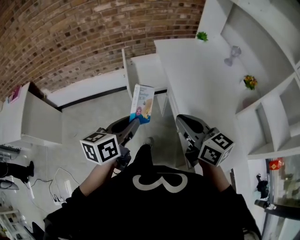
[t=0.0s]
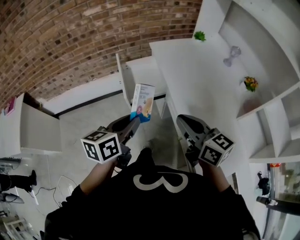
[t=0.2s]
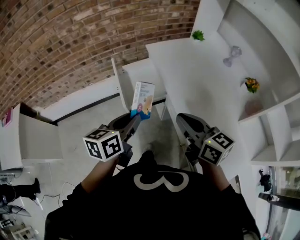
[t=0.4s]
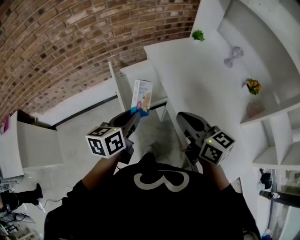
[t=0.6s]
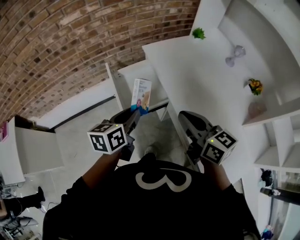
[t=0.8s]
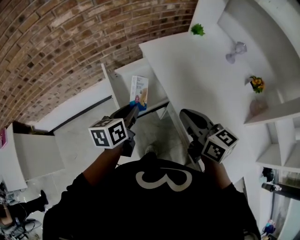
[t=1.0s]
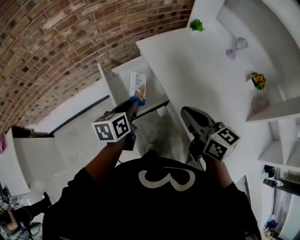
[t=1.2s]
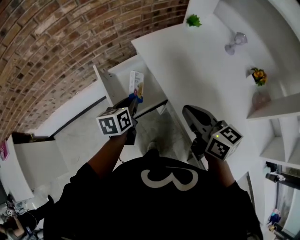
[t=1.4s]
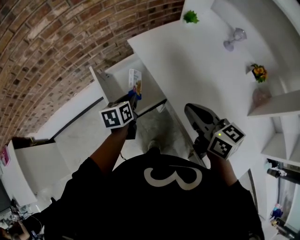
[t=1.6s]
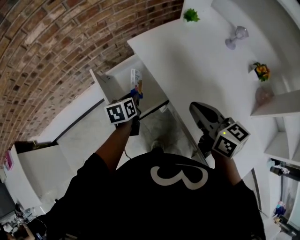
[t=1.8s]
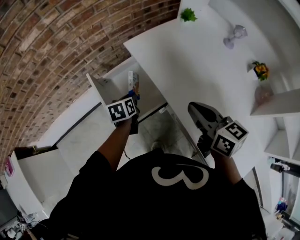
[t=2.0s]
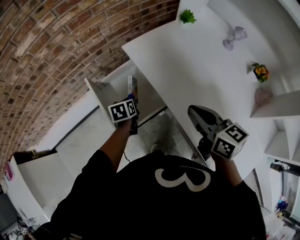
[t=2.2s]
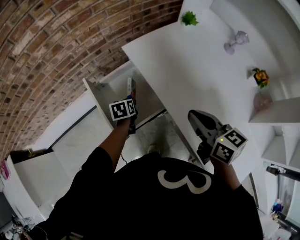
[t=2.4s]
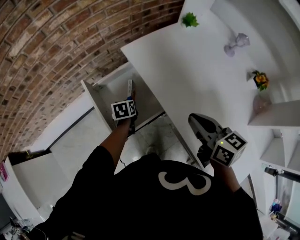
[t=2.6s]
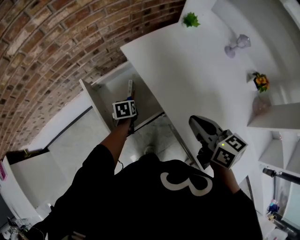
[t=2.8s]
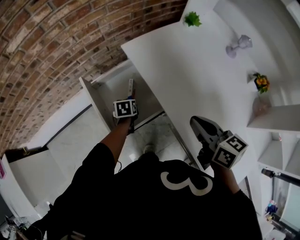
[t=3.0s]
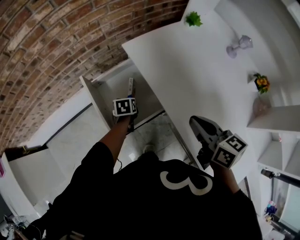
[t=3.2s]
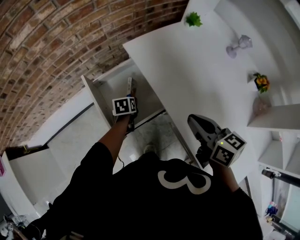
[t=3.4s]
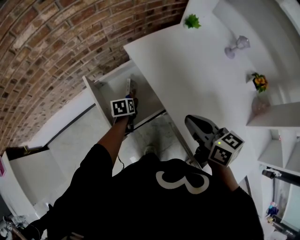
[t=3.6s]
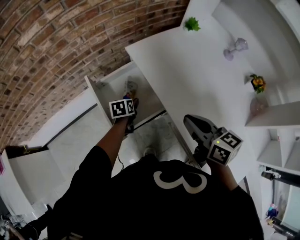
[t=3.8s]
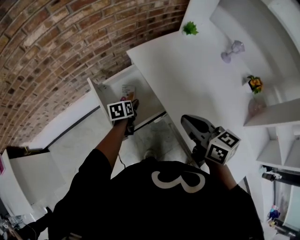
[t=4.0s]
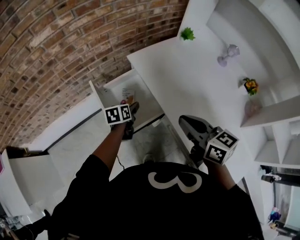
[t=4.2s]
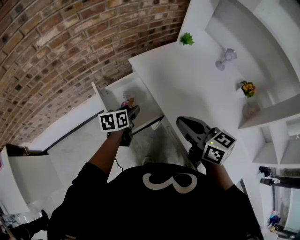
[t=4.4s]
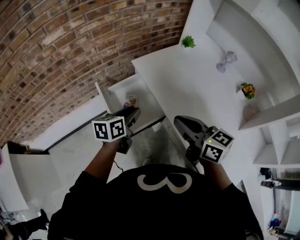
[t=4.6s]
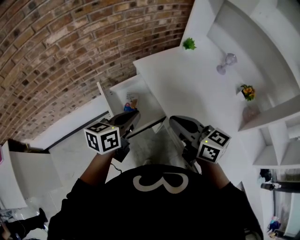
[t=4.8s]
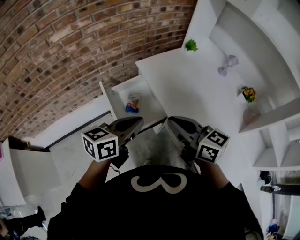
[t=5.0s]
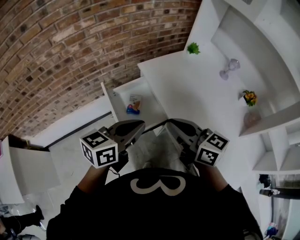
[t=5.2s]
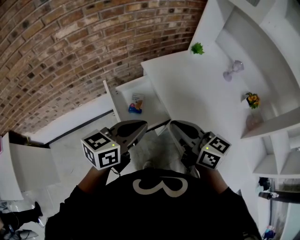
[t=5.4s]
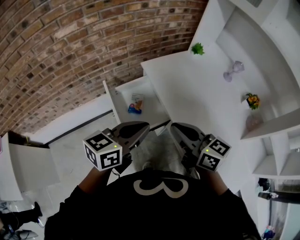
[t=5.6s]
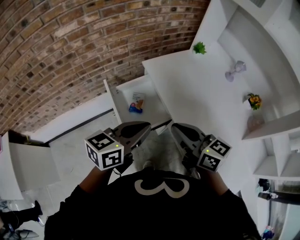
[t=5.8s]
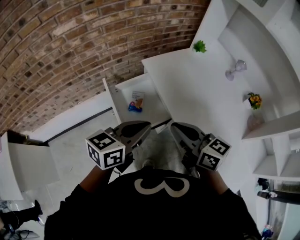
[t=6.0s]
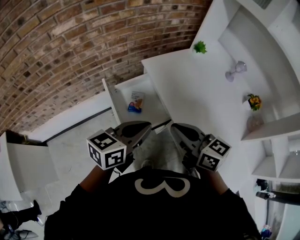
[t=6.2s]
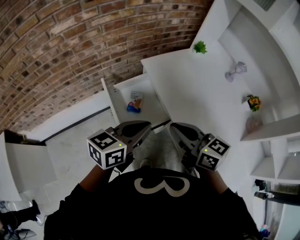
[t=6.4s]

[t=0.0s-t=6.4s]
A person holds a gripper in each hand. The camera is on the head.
t=0.0s to t=1.6s: The left gripper heads forward and downward, covering some 40 cm, and changes its angle by approximately 20 degrees. Meanwhile the right gripper goes some 25 cm forward, and turns by roughly 20 degrees.
t=1.6s to t=3.2s: The left gripper moves downward and forward, some 20 cm, and turns by roughly 20 degrees, while the right gripper shifts by about 5 cm.
t=3.2s to t=4.8s: The right gripper heads upward and to the left, covering some 15 cm, and swivels roughly 20 degrees; the left gripper moves upward and backward, approximately 35 cm, points its fingers some 40 degrees further upward, and opens, then closes again.

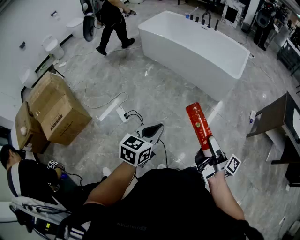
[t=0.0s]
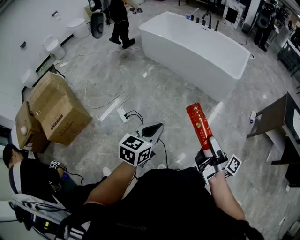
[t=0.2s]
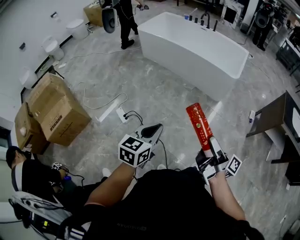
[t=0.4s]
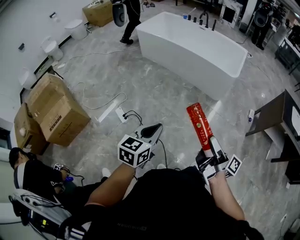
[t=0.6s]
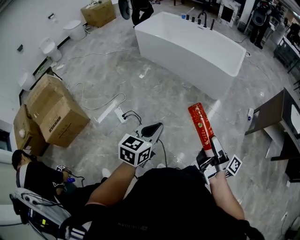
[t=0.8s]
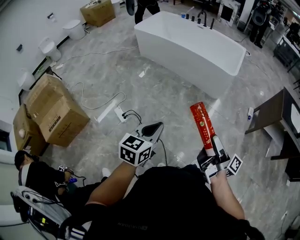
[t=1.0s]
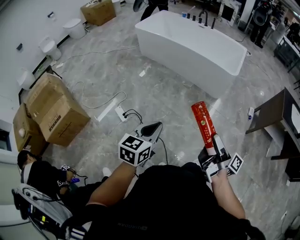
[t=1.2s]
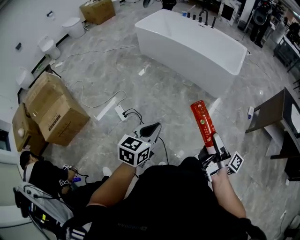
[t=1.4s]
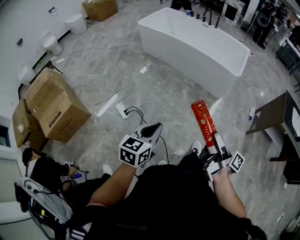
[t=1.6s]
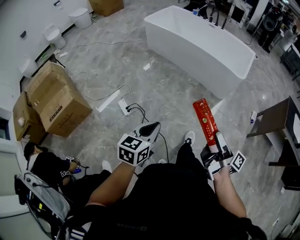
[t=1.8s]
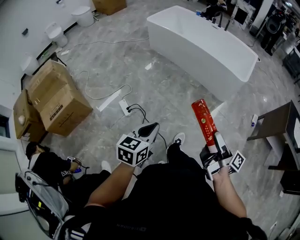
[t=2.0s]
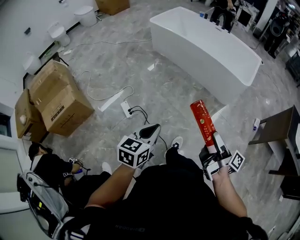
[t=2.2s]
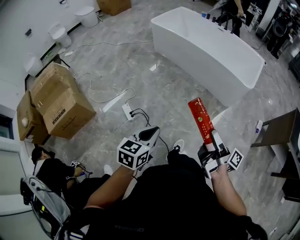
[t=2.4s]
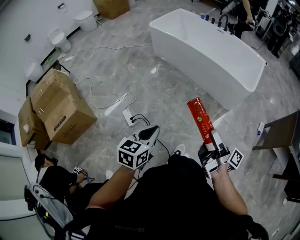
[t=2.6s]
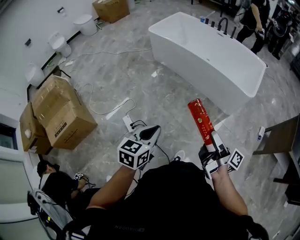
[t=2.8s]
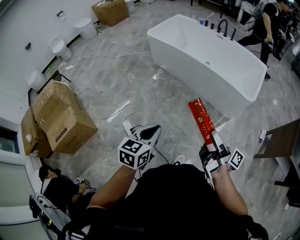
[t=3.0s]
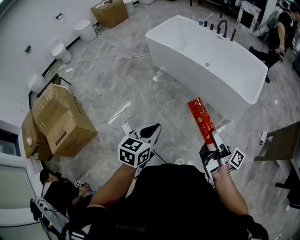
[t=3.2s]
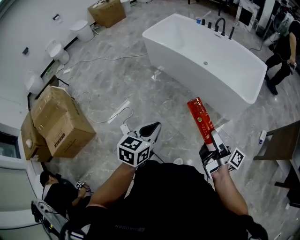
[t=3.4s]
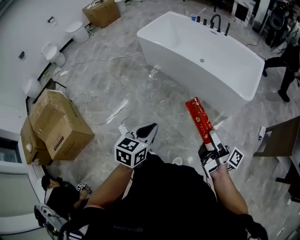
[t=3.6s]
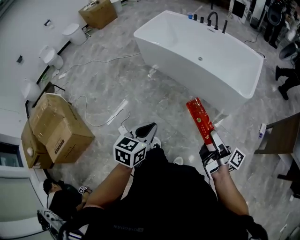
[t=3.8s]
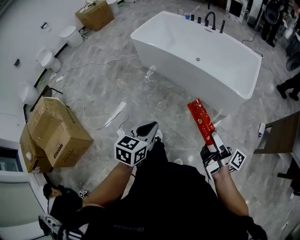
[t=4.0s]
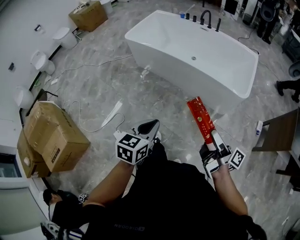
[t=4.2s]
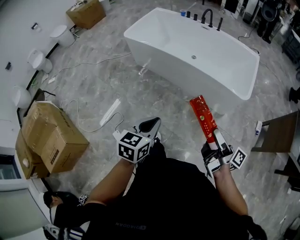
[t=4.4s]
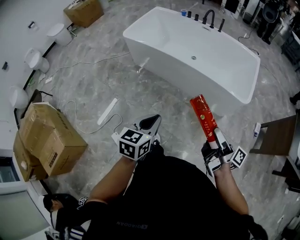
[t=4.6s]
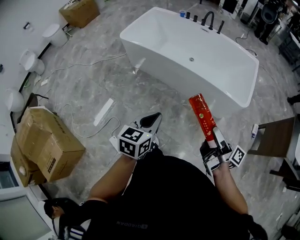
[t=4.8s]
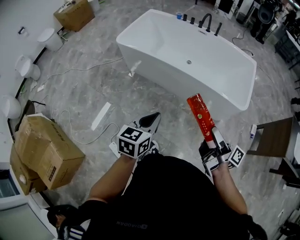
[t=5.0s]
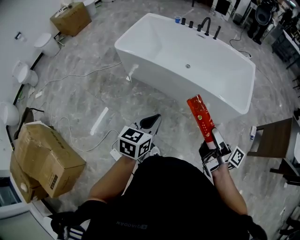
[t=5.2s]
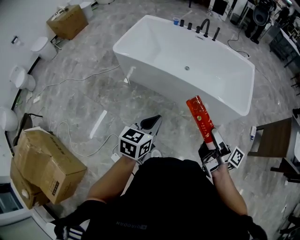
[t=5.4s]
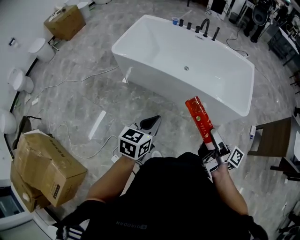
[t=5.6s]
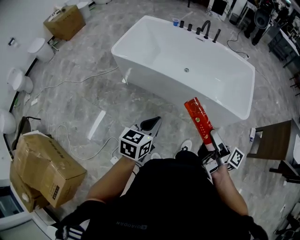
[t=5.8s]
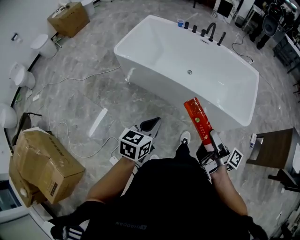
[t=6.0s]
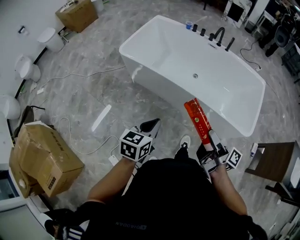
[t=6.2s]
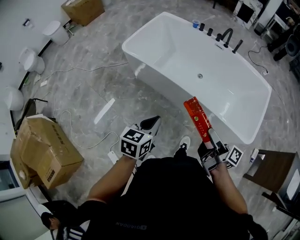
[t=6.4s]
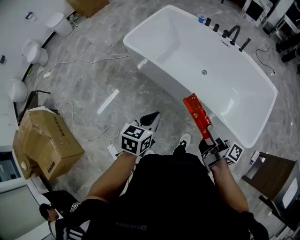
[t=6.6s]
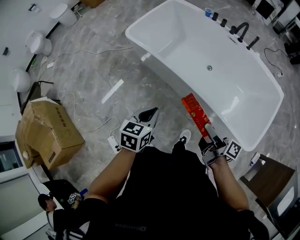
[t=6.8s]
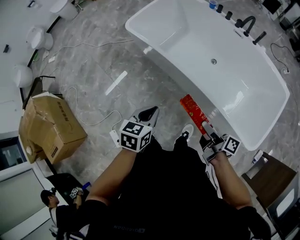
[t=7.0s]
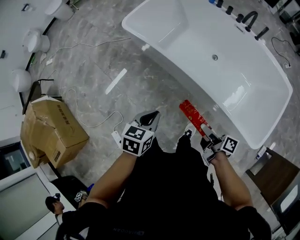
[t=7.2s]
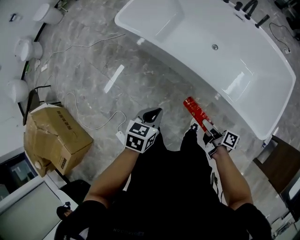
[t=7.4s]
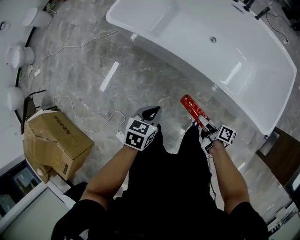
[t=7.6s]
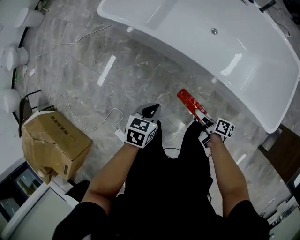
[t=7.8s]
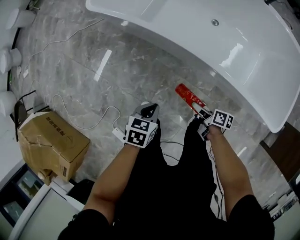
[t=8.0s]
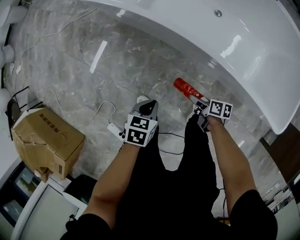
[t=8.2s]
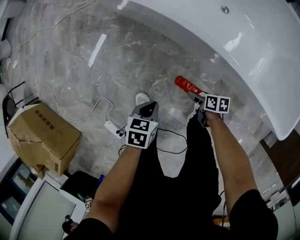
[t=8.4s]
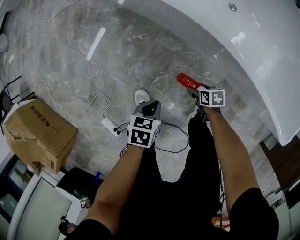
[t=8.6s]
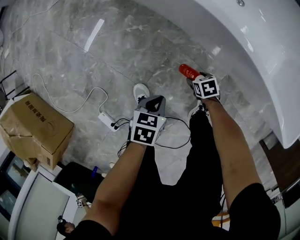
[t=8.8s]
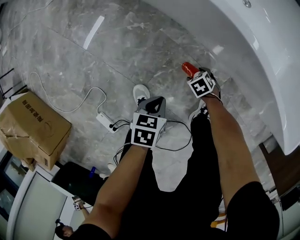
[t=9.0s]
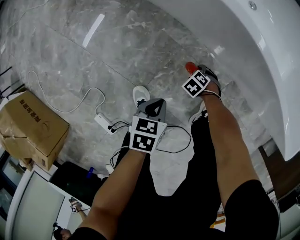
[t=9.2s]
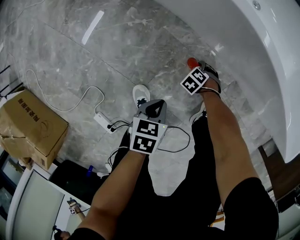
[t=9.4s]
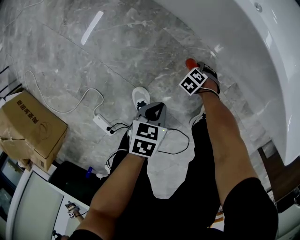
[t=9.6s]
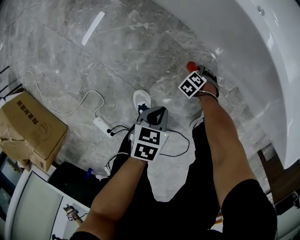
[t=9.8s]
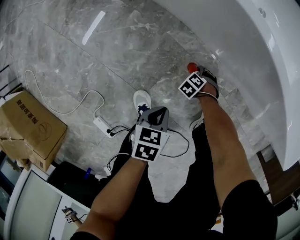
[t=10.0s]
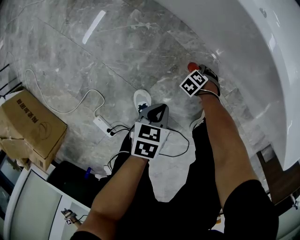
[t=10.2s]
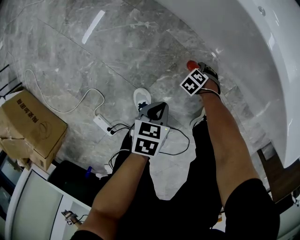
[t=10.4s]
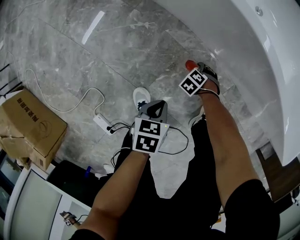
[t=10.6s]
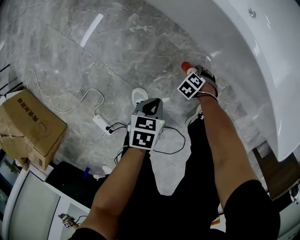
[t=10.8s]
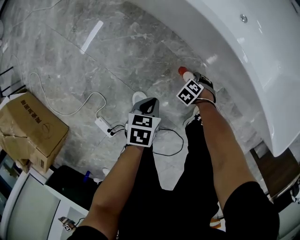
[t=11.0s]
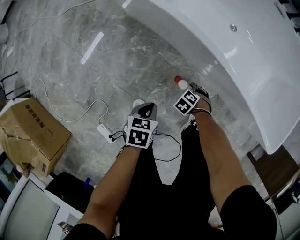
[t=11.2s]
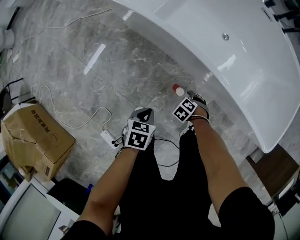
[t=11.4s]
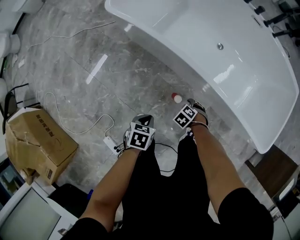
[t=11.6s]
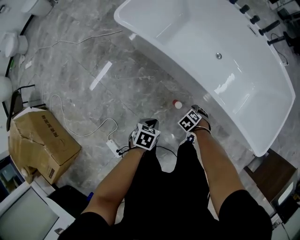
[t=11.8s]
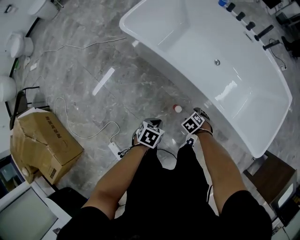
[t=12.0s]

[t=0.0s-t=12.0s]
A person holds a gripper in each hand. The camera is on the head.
t=1.6s to t=3.0s: The left gripper ends up some 25 cm from where it was.
t=3.0s to t=4.4s: The left gripper shifts by approximately 20 cm.
t=4.4s to t=6.0s: The left gripper ends up some 30 cm from where it was.
t=6.0s to t=7.6s: The left gripper heads downward, covering approximately 20 cm, and changes its angle by approximately 20 degrees.
t=7.6s to t=9.0s: The left gripper is displaced downward by about 35 cm, and turns by some 20 degrees.
t=10.4s to t=12.0s: The left gripper moves upward, some 25 cm.

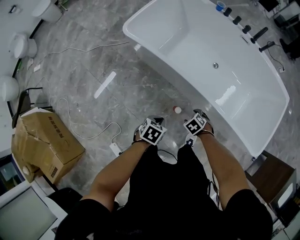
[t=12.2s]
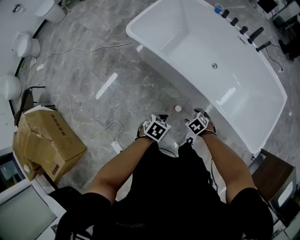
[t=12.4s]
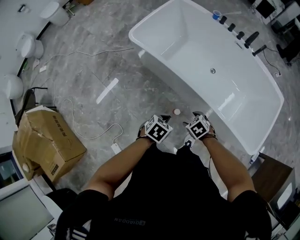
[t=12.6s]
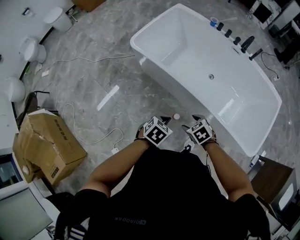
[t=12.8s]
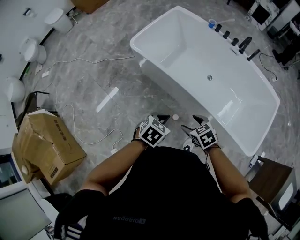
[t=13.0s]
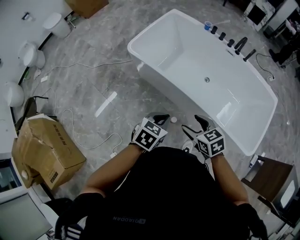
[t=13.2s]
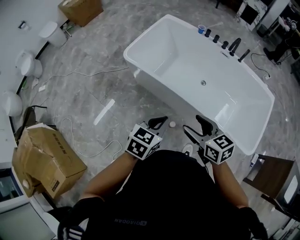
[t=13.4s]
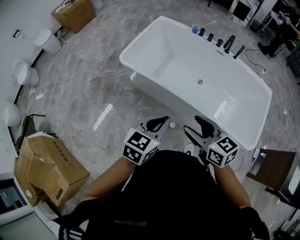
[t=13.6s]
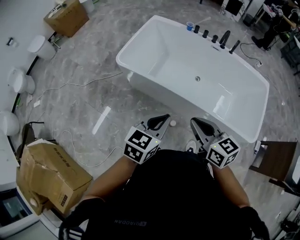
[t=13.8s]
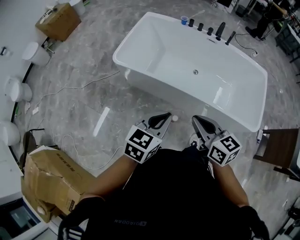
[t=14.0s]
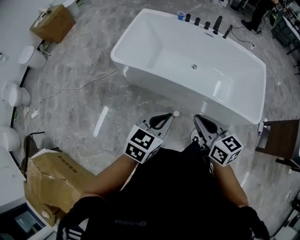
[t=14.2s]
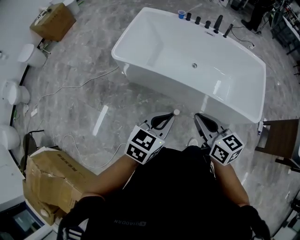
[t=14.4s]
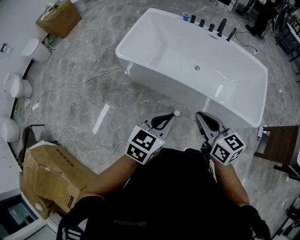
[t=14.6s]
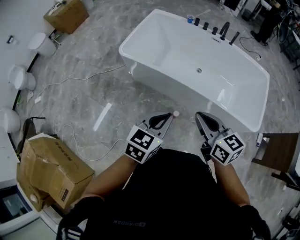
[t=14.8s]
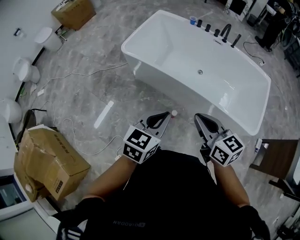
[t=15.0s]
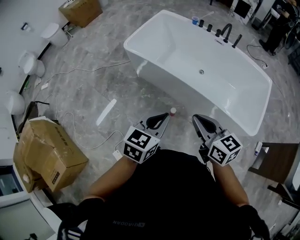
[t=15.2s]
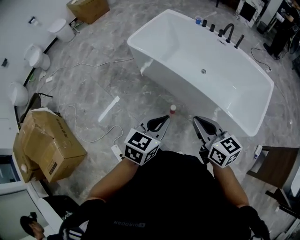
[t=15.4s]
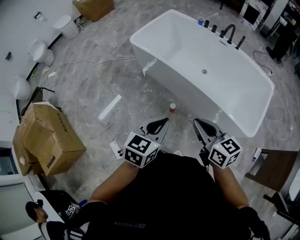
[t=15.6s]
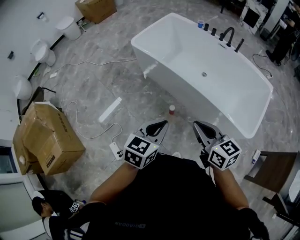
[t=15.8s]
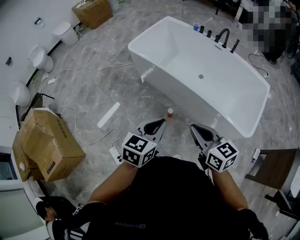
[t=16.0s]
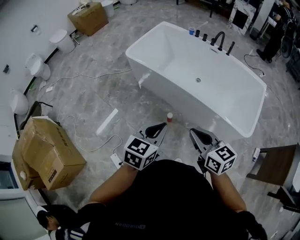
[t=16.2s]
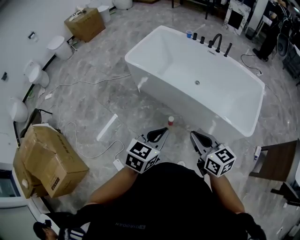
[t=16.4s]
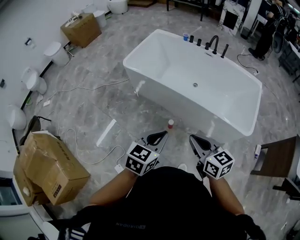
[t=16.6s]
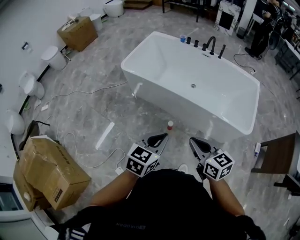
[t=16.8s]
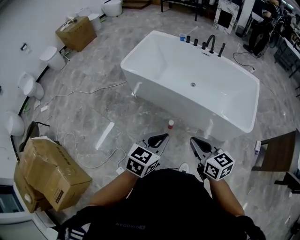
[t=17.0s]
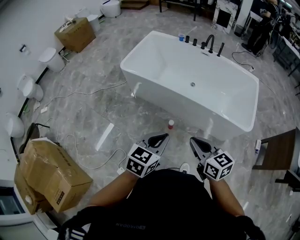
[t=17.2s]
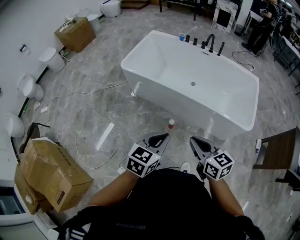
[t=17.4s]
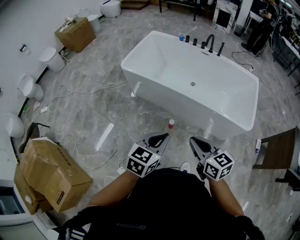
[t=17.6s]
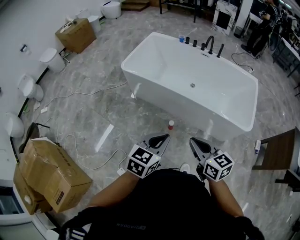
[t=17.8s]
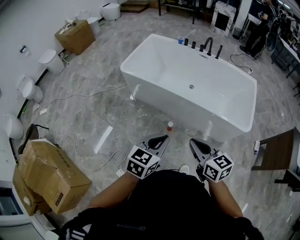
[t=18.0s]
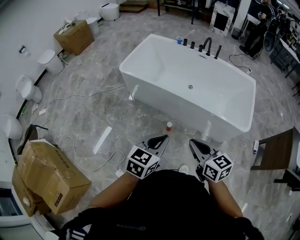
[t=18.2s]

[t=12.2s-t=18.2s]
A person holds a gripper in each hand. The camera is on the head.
t=12.2s to t=13.8s: The left gripper travels upward by about 35 cm, and angles its fingers upward, by approximately 40 degrees.
t=13.8s to t=15.2s: The left gripper ends up about 15 cm from where it was.
t=15.2s to t=16.6s: The left gripper changes place by some 10 cm.
